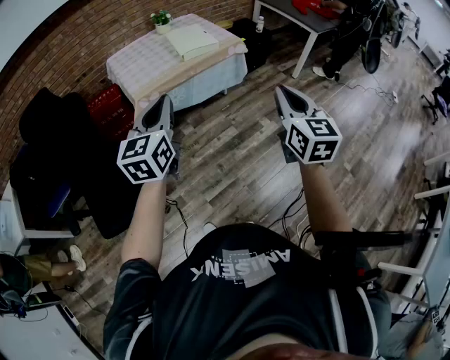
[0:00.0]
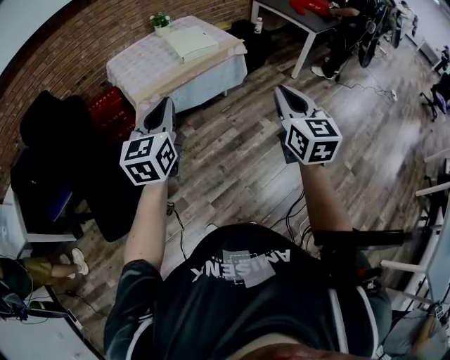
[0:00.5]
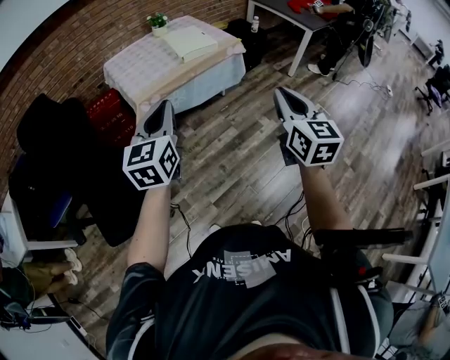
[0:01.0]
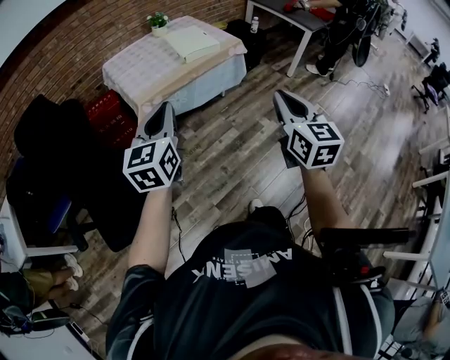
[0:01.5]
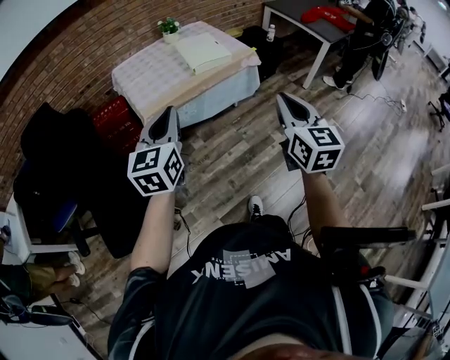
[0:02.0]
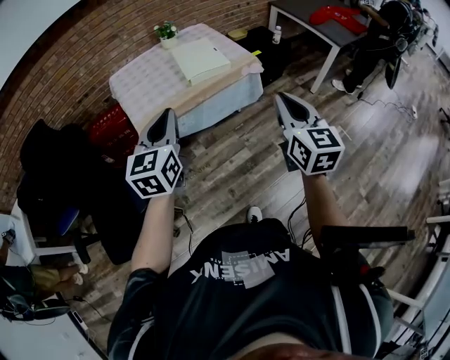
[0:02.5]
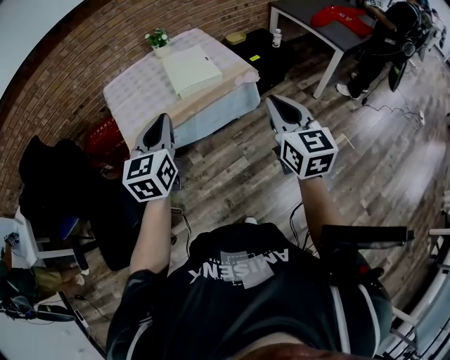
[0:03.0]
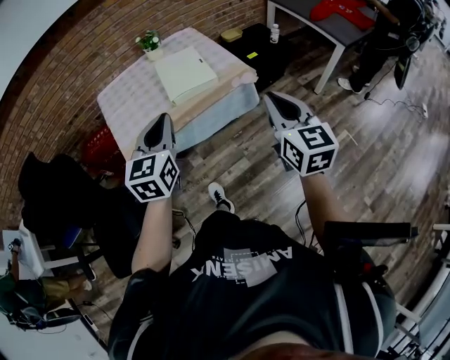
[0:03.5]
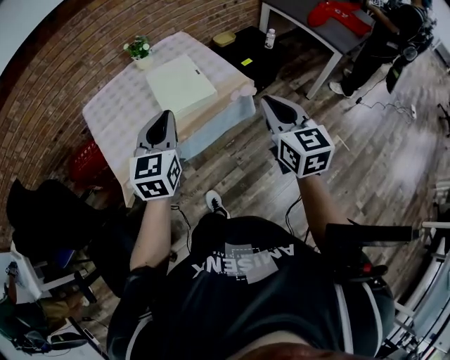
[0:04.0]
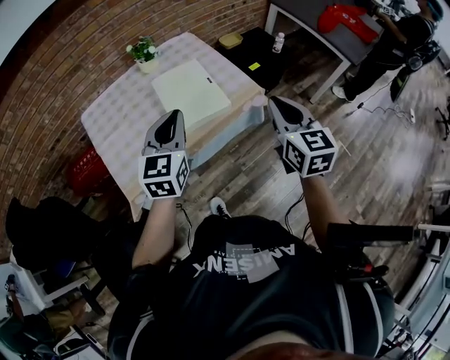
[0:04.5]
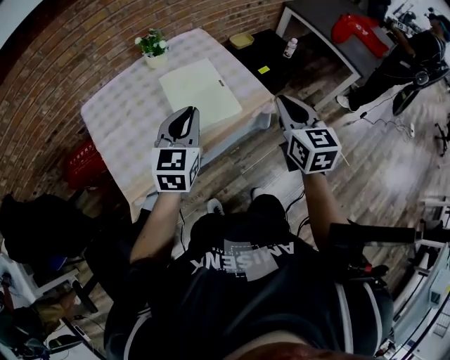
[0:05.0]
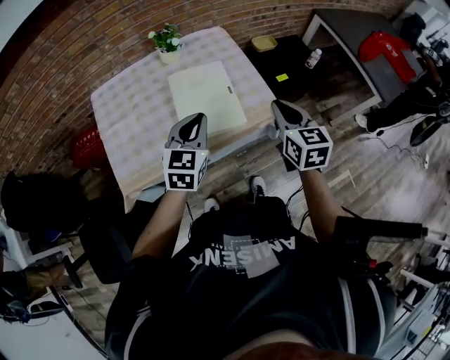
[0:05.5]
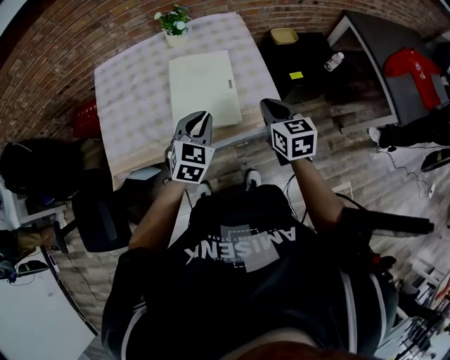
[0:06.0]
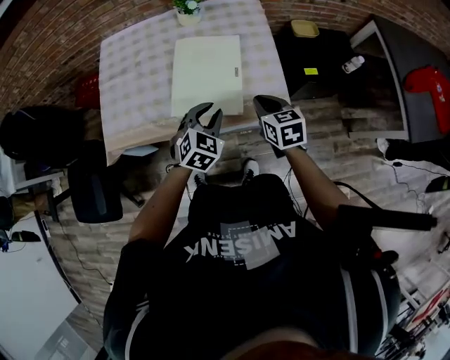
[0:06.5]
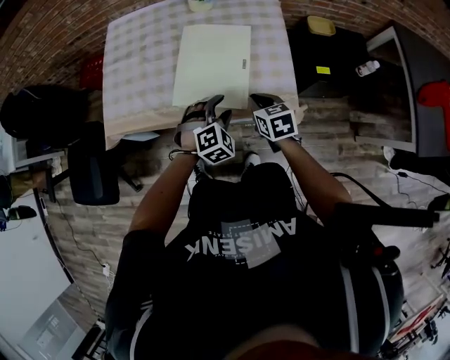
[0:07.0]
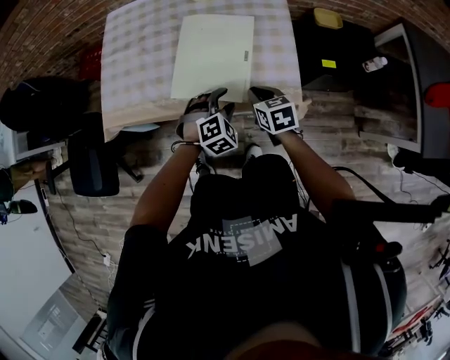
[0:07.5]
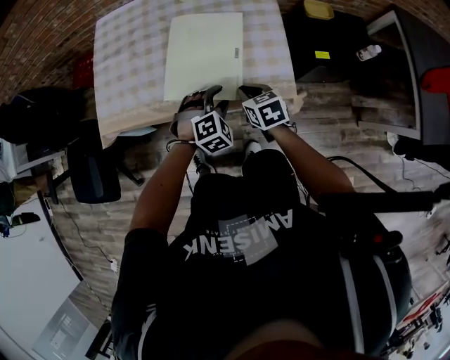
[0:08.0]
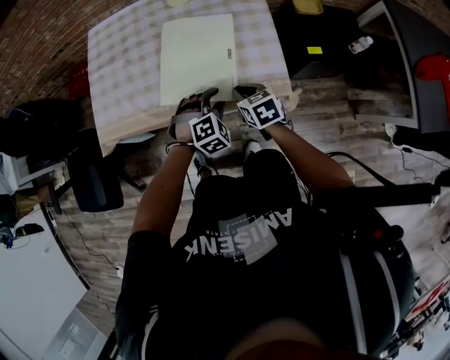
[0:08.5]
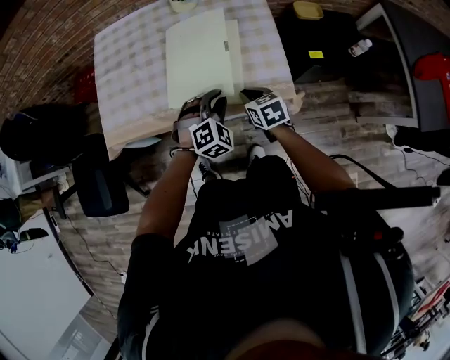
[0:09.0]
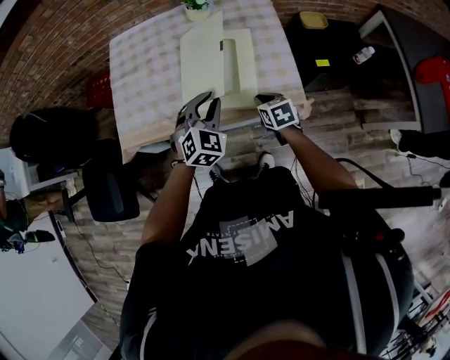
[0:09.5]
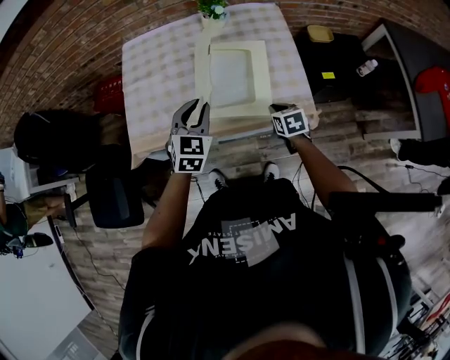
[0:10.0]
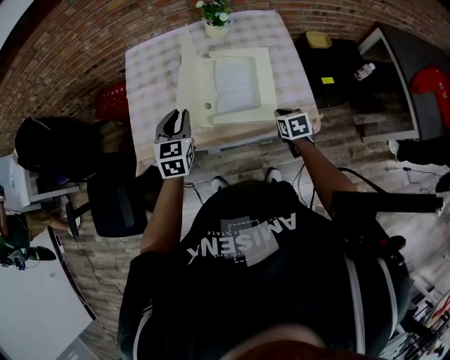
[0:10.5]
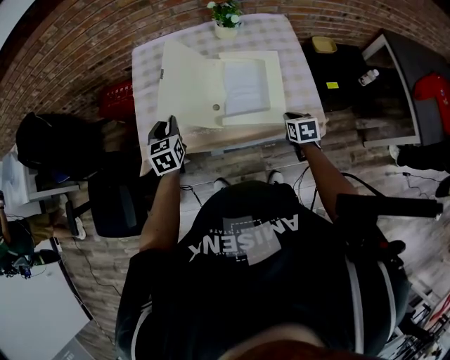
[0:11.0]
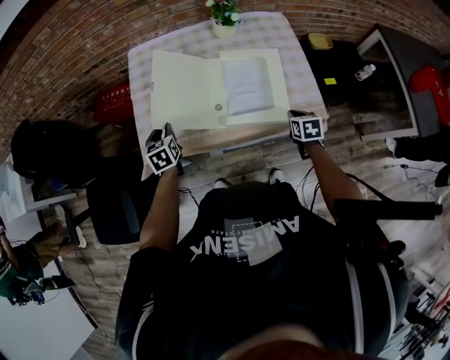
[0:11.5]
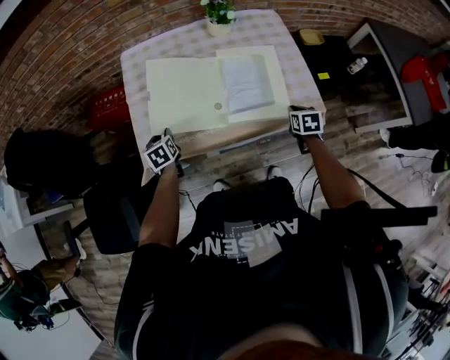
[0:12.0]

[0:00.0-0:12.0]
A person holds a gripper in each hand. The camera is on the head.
0:00.0 to 0:02.0: The two grippers go some 10 cm forward.
0:02.0 to 0:04.0: The two grippers travel together, forward, roughly 40 cm.
0:04.0 to 0:06.0: The two grippers go some 35 cm forward and downward. The right gripper turns by roughly 30 degrees. Meanwhile the left gripper rotates approximately 20 degrees.
0:06.0 to 0:08.0: The right gripper travels downward by about 20 cm, and changes its angle by some 30 degrees, while the left gripper is displaced downward and to the right by approximately 15 cm, rotates about 40 degrees, and opens its fingers.
0:08.0 to 0:10.0: The left gripper shifts about 25 cm to the left and upward, rotates roughly 40 degrees, and closes.
0:10.0 to 0:12.0: The left gripper goes approximately 30 cm to the left and downward, and changes its angle by roughly 40 degrees.

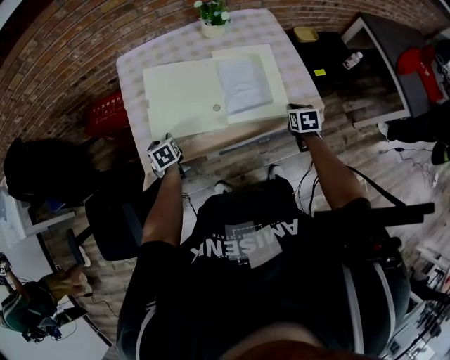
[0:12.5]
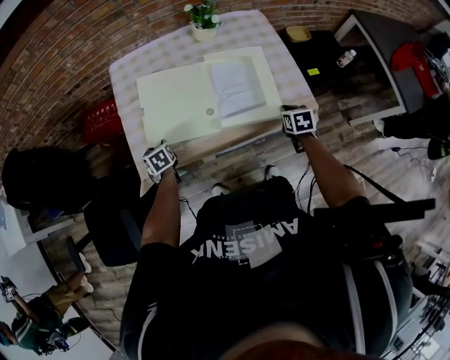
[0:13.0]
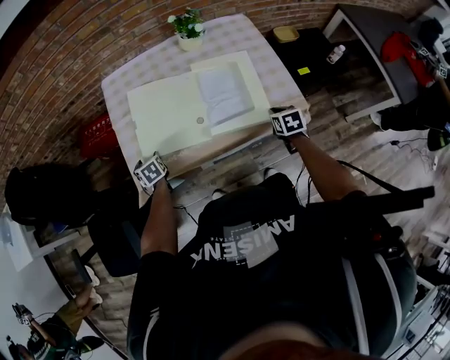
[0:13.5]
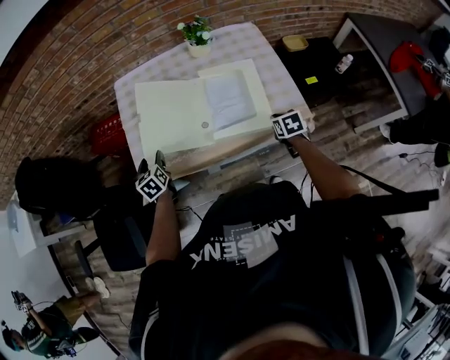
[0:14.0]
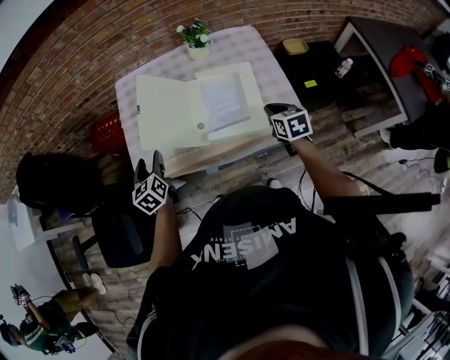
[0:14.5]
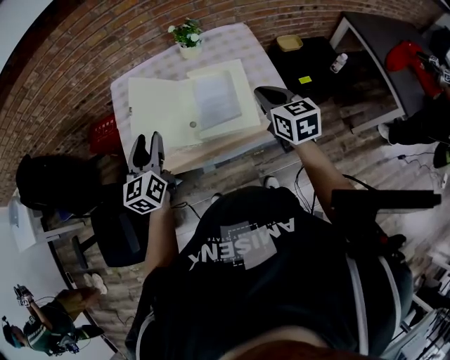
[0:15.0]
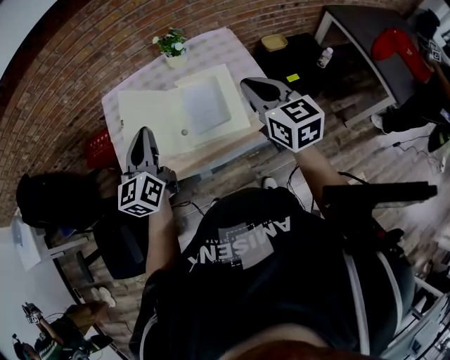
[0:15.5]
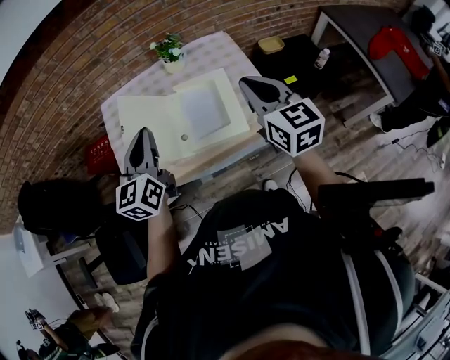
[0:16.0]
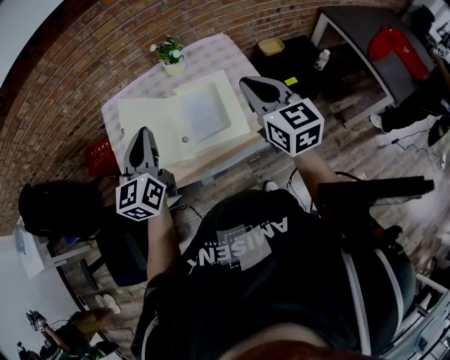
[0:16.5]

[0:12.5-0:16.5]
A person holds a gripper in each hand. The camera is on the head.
0:12.5 to 0:14.5: The left gripper is displaced upward by approximately 15 cm, turns by about 30 degrees, and opens its fingers. The right gripper moves upward, roughly 10 cm, and rotates about 20 degrees.
0:14.5 to 0:16.5: The right gripper moves upward, some 25 cm, and tips its fingers upward by roughly 30 degrees. Meanwhile the left gripper shifts about 25 cm upward and to the right, changes its angle by about 30 degrees, and closes.

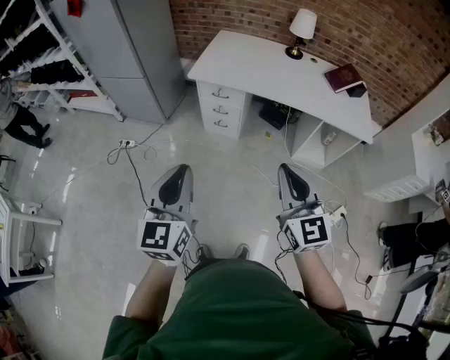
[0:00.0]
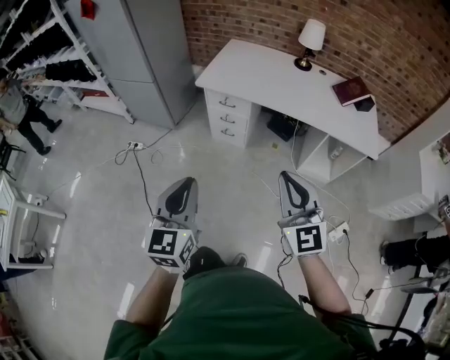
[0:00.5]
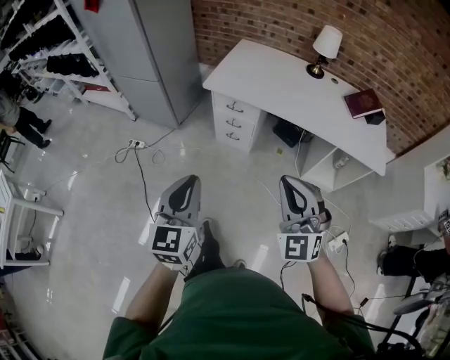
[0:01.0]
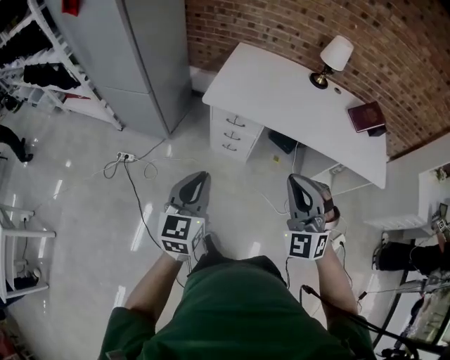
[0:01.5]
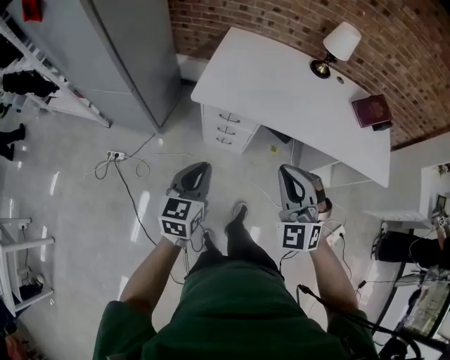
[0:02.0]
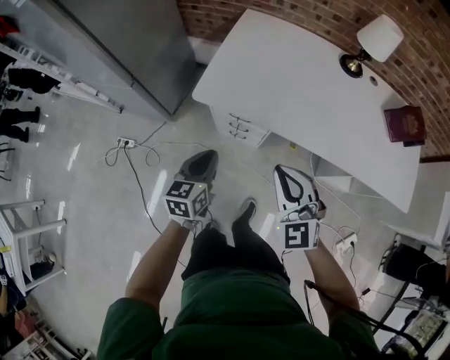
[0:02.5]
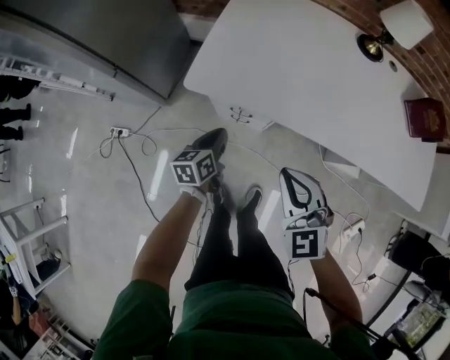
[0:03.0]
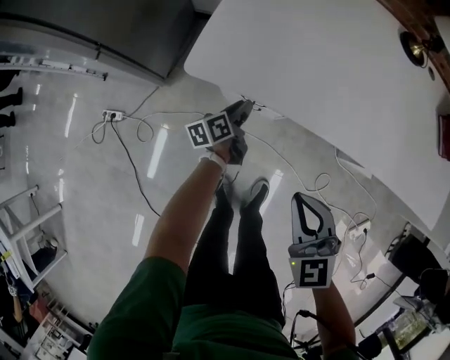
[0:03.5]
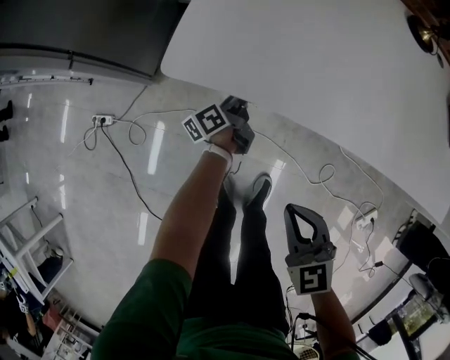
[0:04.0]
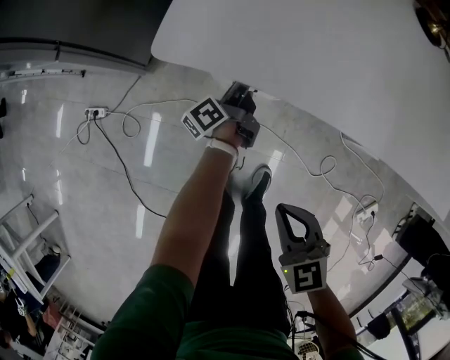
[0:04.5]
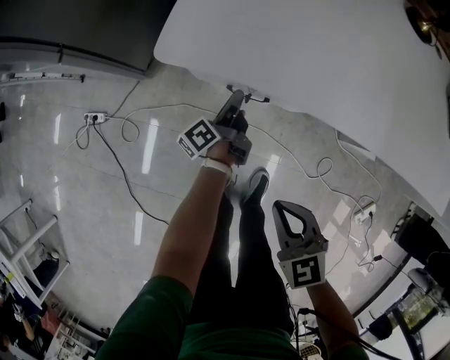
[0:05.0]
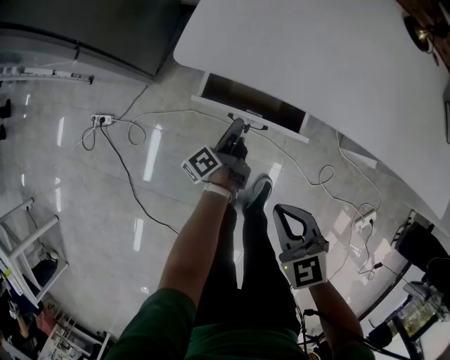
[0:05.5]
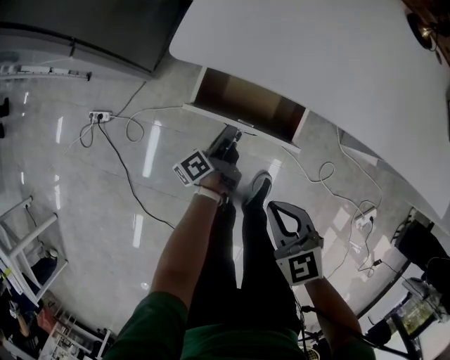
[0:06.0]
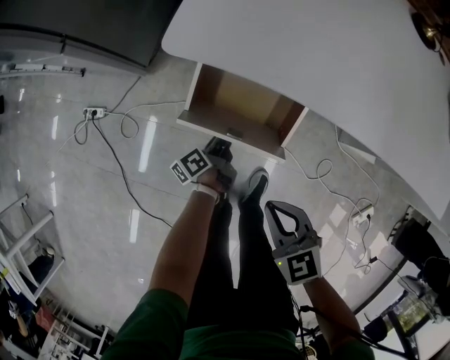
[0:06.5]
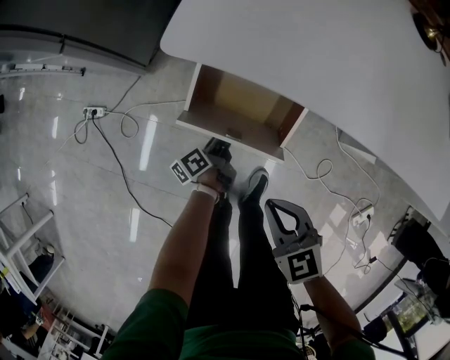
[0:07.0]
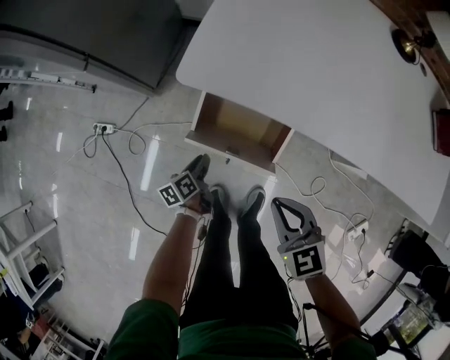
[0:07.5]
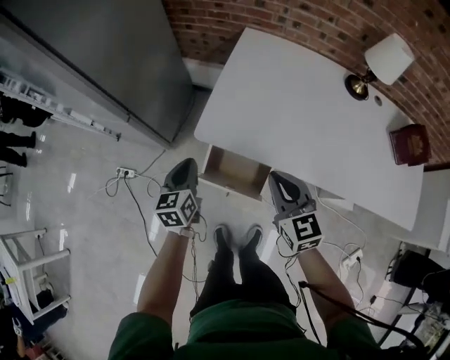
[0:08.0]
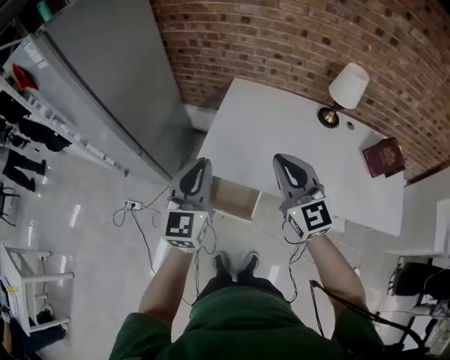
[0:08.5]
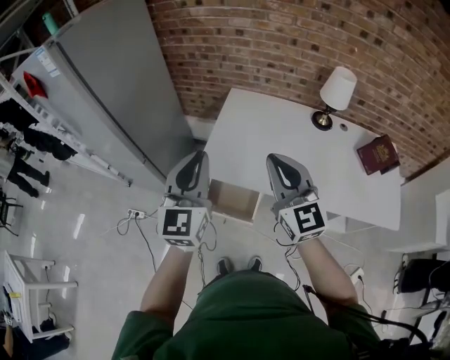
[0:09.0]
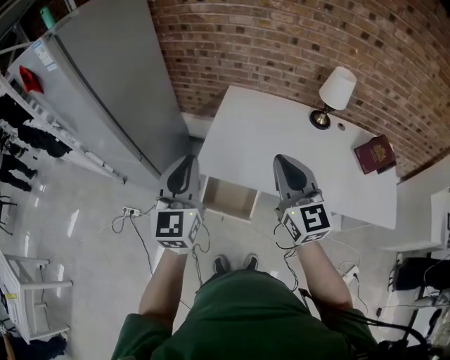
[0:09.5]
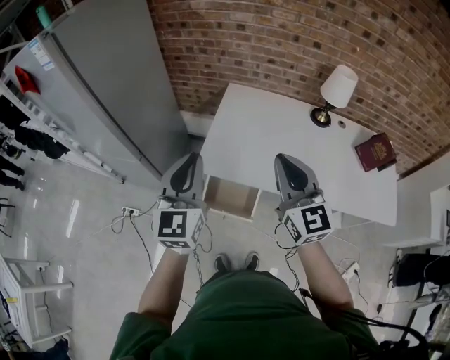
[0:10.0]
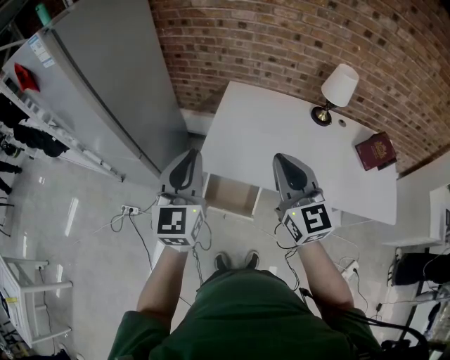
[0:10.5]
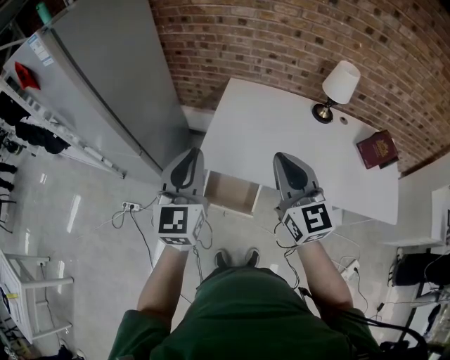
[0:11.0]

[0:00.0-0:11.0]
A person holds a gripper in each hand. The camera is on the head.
0:00.0 to 0:02.0: The right gripper moves forward, roughly 30 cm, and rolls counterclockwise, seen from behind, by roughly 40 degrees. Meanwhile the left gripper goes roughly 40 cm forward and downward, and rotates approximately 20 degrees.
0:02.0 to 0:03.5: The right gripper goes some 30 cm downward and forward, and changes its angle by approximately 40 degrees; the left gripper moves downward and forward, about 50 cm, twists about 50 degrees counterclockwise, seen from behind, and opens its fingers.
0:03.5 to 0:05.5: The left gripper goes roughly 5 cm backward, and turns by about 30 degrees. Meanwhile the right gripper travels downward and backward by about 10 cm.
0:05.5 to 0:07.5: The left gripper moves to the left and backward, about 15 cm, and tilts its fingers about 30 degrees downward.
0:07.5 to 0:09.0: The left gripper is displaced upward by approximately 70 cm, and angles its fingers upward, by about 50 degrees; the right gripper shifts roughly 50 cm upward, and tips its fingers upward by about 40 degrees.
0:09.0 to 0:11.0: The grippers stay close to where they were, moving slightly.
